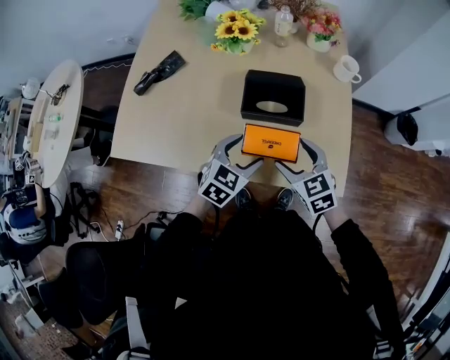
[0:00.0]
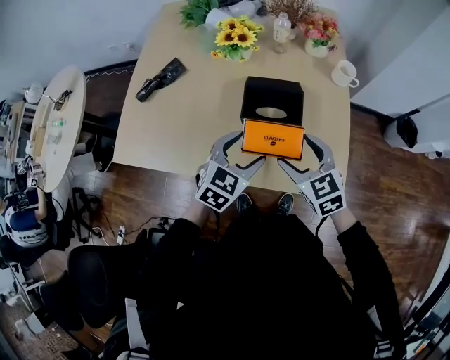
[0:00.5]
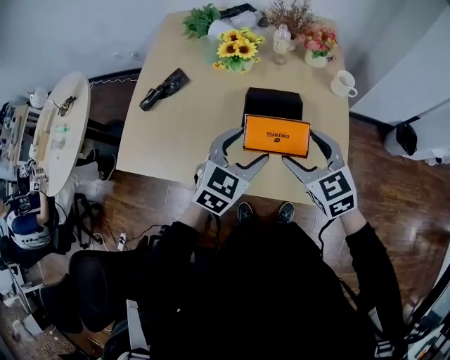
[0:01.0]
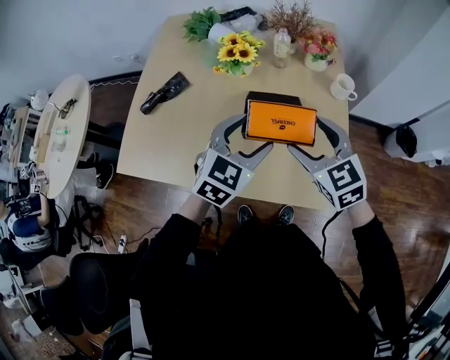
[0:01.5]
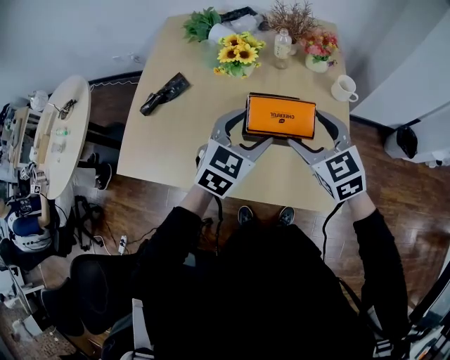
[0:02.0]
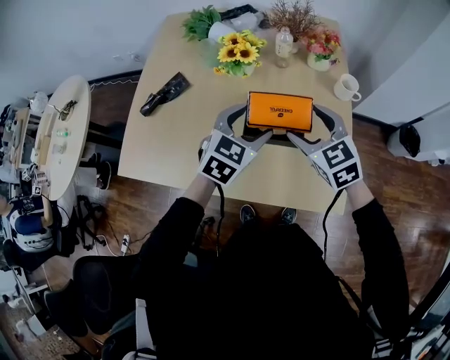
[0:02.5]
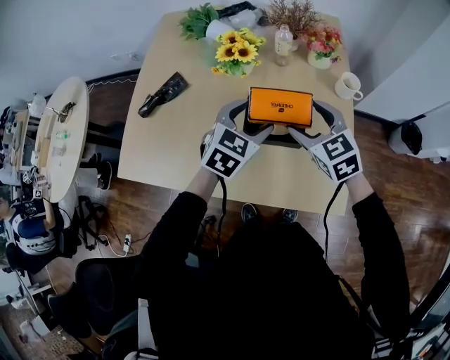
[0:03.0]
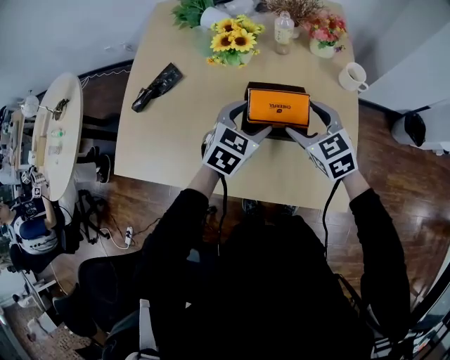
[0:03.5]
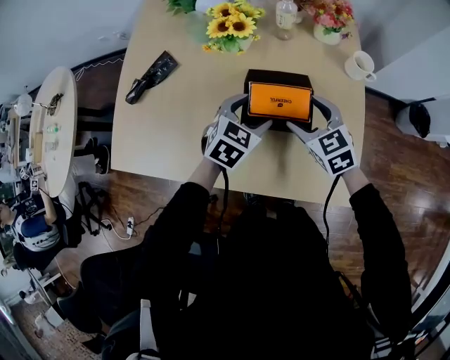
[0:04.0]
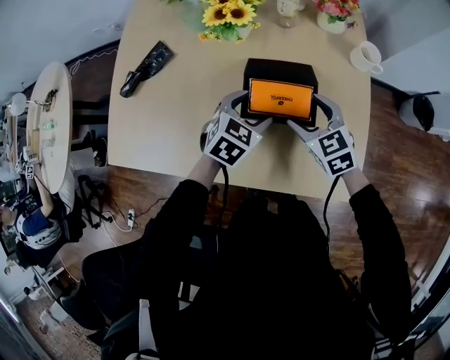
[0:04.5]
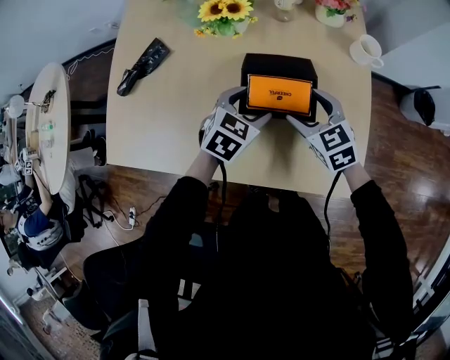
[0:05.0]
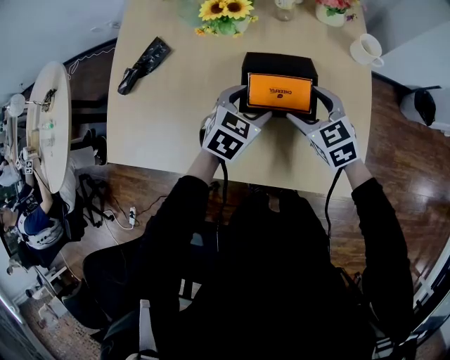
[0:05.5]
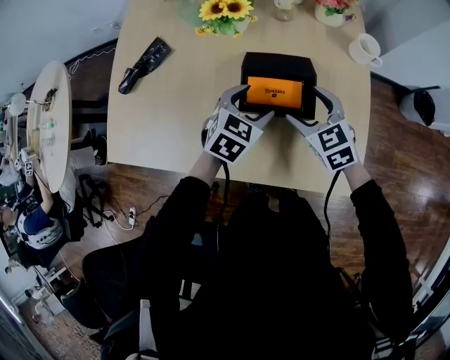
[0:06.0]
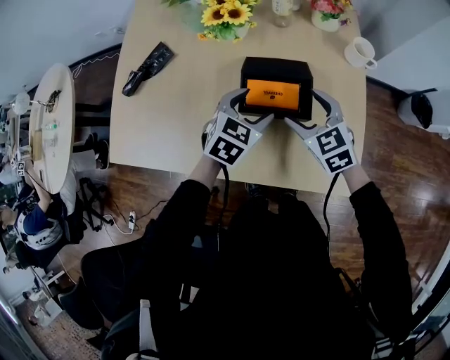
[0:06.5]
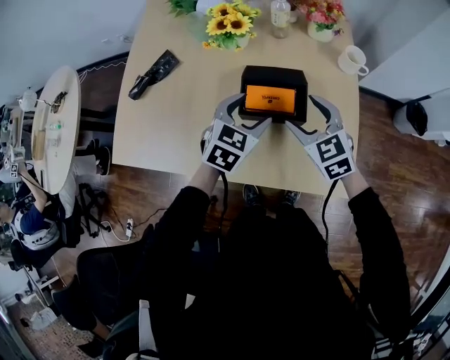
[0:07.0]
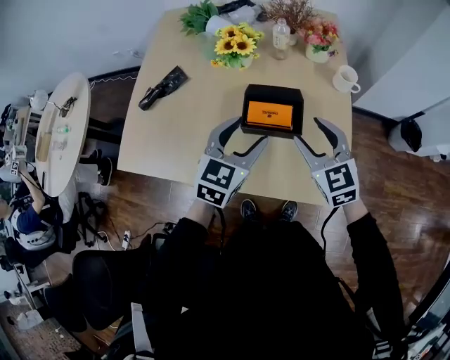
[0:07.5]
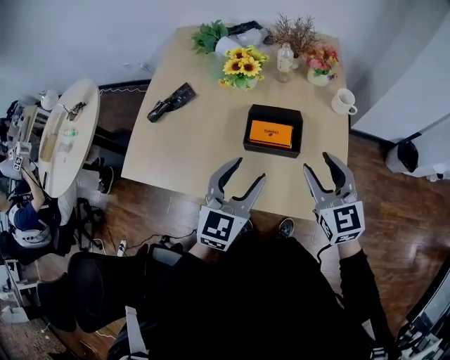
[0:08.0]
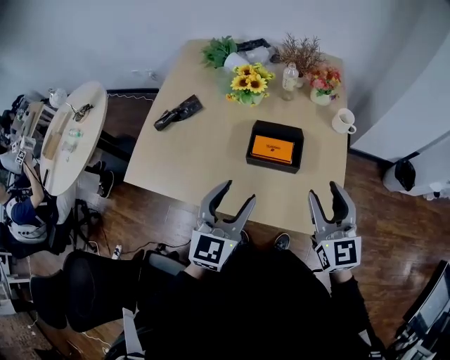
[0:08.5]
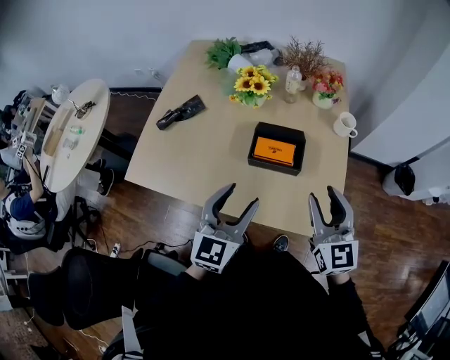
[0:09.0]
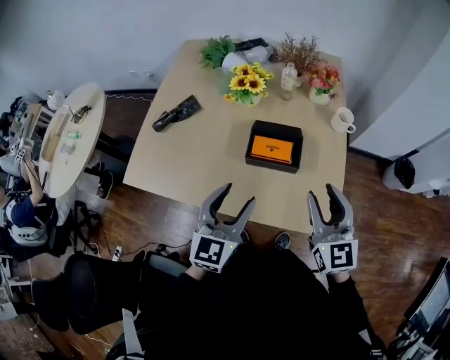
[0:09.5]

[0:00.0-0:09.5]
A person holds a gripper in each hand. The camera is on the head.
0:00.0 to 0:02.0: Both grippers move upward and forward, approximately 15 cm.
0:02.0 to 0:04.0: Both grippers travel together downward and forward, about 15 cm.
0:04.0 to 0:05.5: The grippers move only a little.
0:05.5 to 0:07.5: Both grippers travel together upward and backward, some 15 cm. The left gripper swivels roughly 20 degrees.
0:07.5 to 0:09.5: The left gripper moves backward, about 10 cm, while the right gripper goes about 10 cm upward and backward, and changes its angle by about 20 degrees.

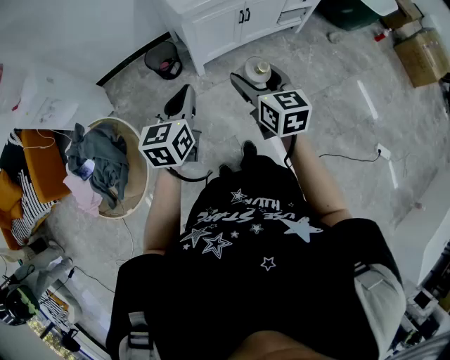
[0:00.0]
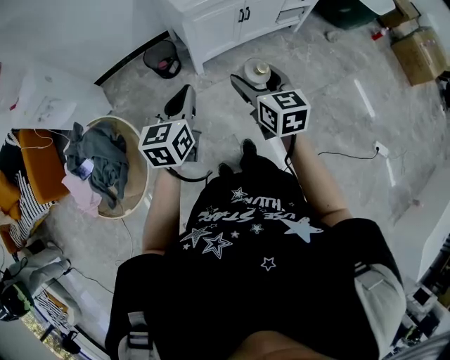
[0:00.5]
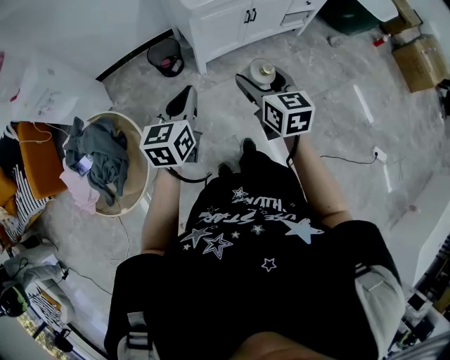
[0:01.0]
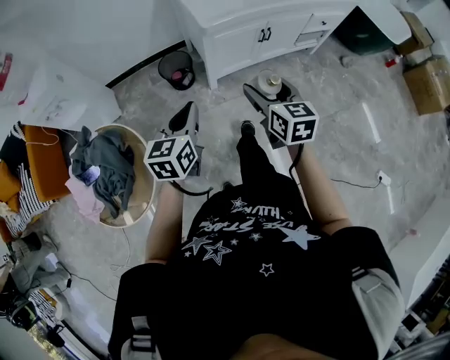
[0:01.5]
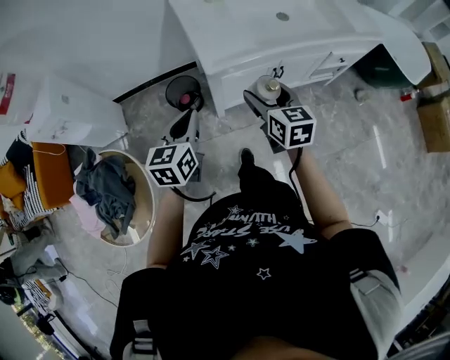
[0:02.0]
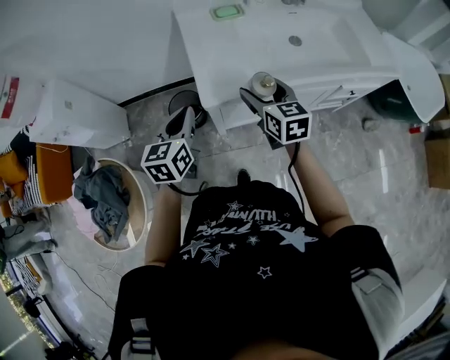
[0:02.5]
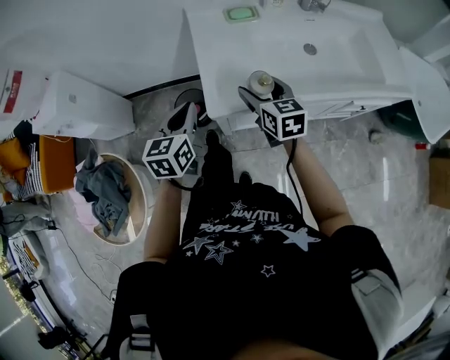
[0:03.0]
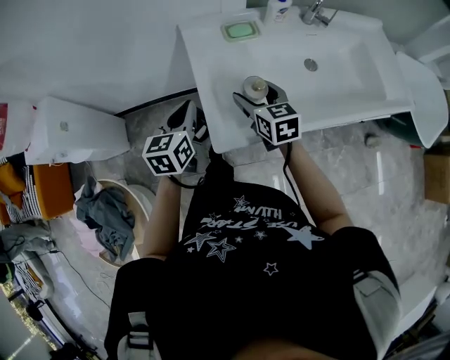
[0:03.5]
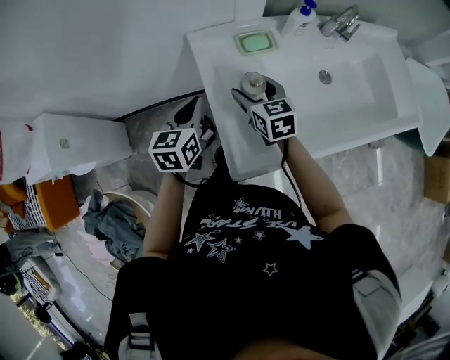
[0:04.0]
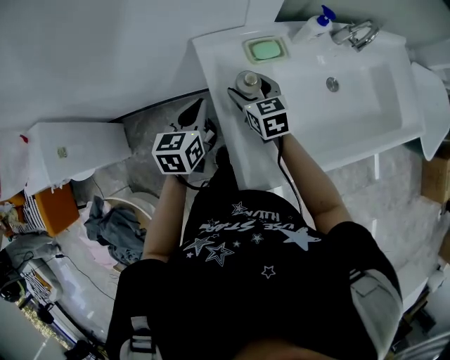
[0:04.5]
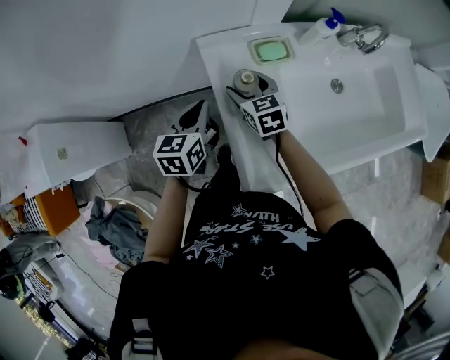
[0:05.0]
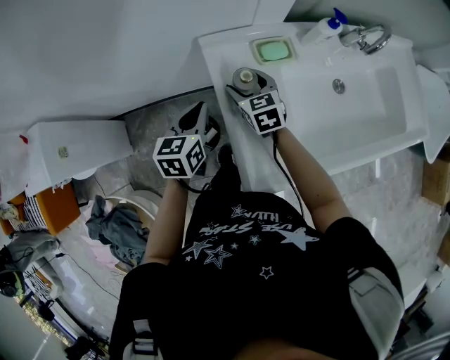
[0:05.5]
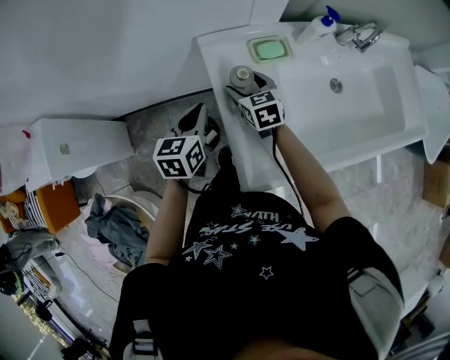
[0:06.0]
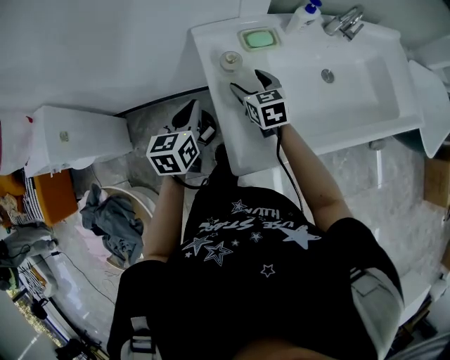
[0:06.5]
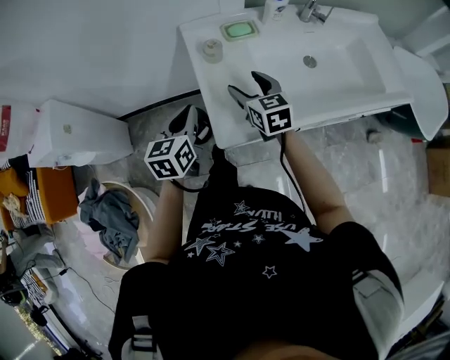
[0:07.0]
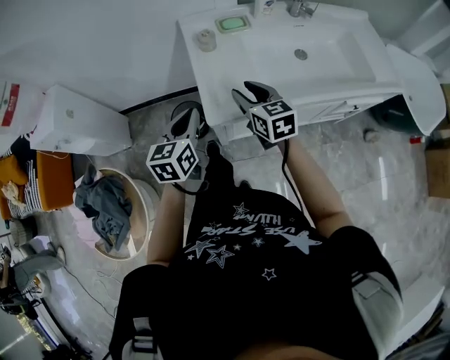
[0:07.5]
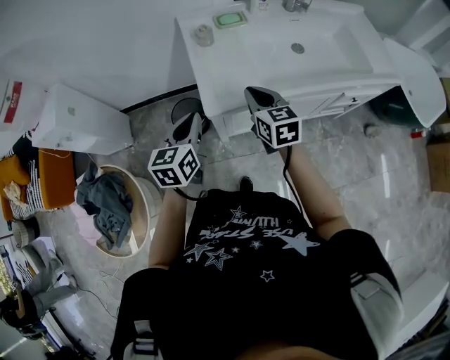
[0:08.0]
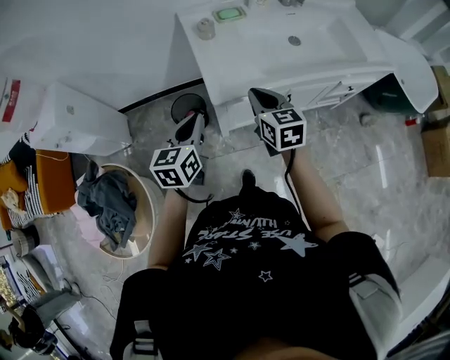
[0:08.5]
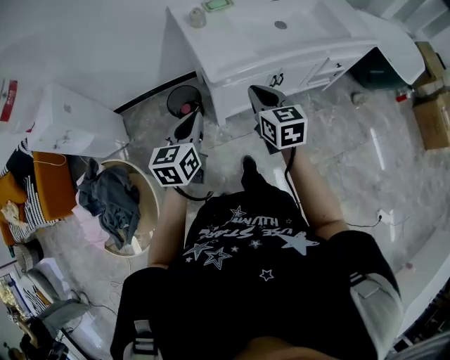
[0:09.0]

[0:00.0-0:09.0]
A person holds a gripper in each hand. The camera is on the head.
0:00.0 to 0:02.0: Both grippers move forward, approximately 25 cm.
0:02.0 to 0:04.5: The pair of grippers is taken forward, roughly 50 cm.
0:04.5 to 0:07.0: The right gripper travels backward and upward by about 20 cm, while the left gripper moves backward, about 20 cm.
0:07.0 to 0:09.0: Both grippers travel together backward, approximately 30 cm. The right gripper closes its fingers.

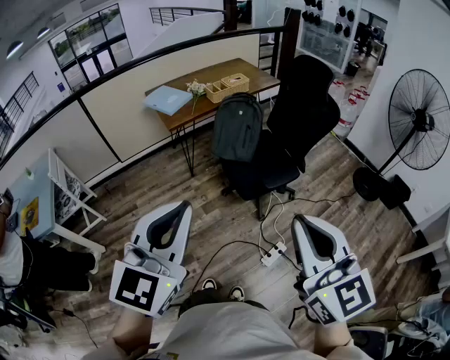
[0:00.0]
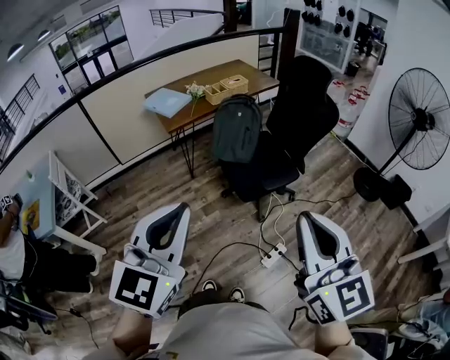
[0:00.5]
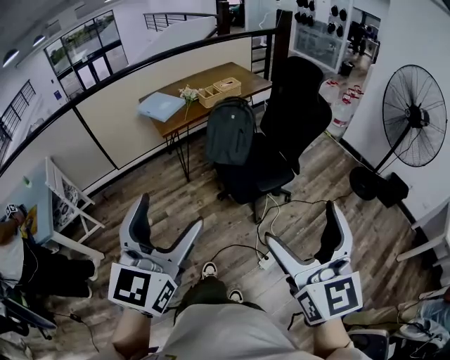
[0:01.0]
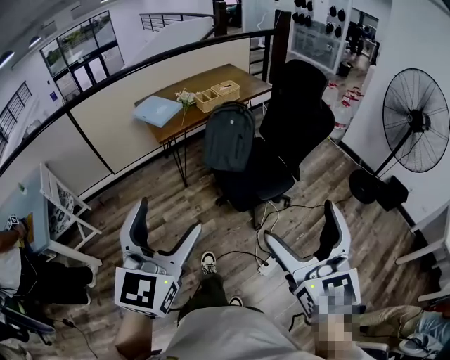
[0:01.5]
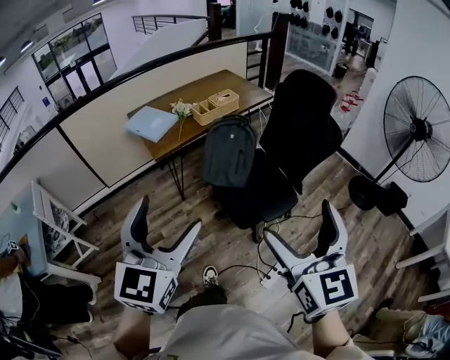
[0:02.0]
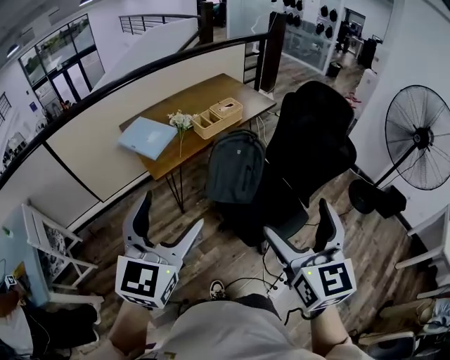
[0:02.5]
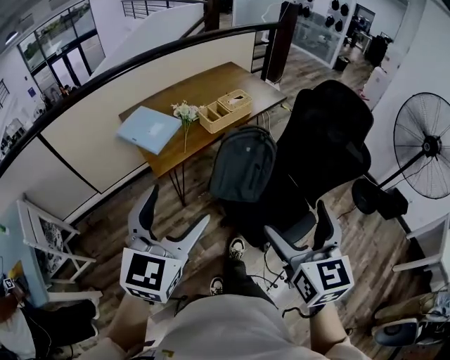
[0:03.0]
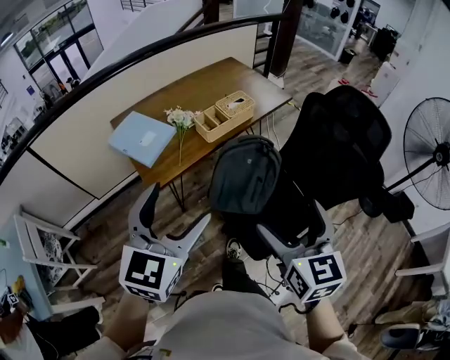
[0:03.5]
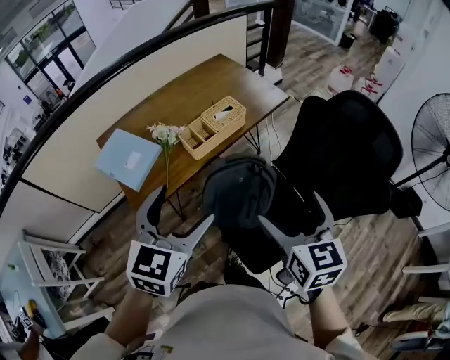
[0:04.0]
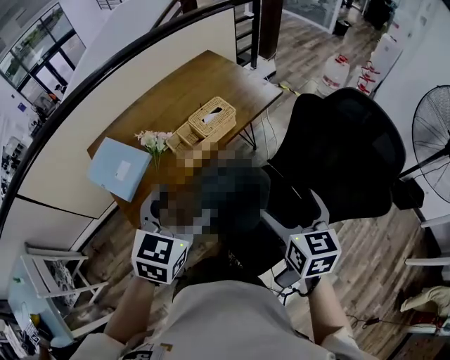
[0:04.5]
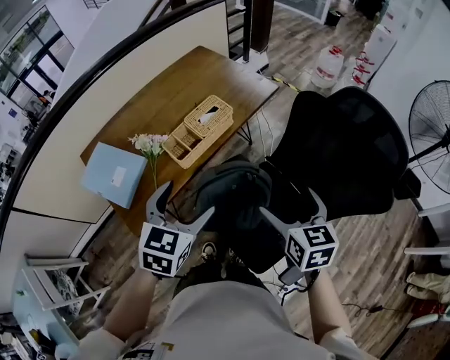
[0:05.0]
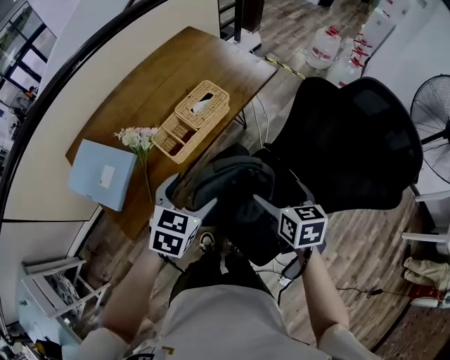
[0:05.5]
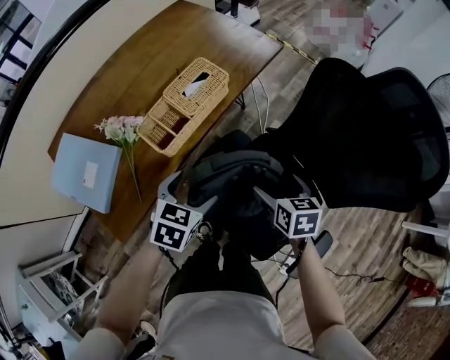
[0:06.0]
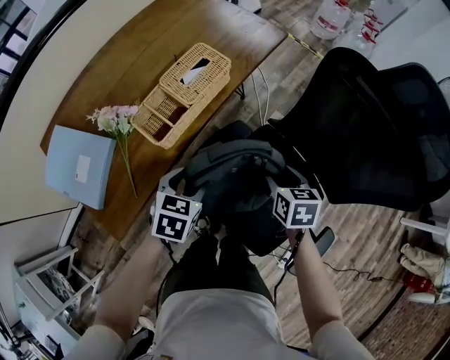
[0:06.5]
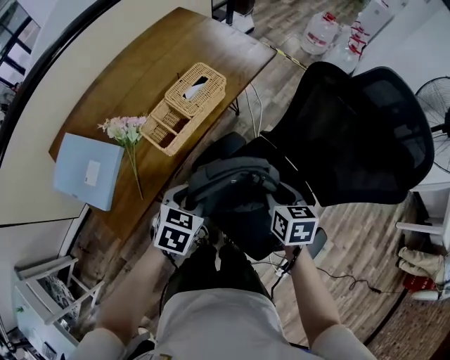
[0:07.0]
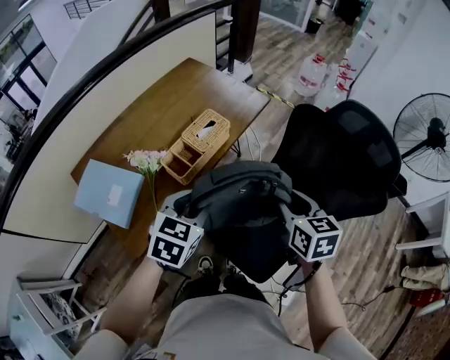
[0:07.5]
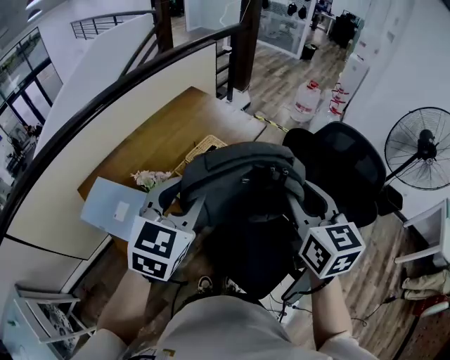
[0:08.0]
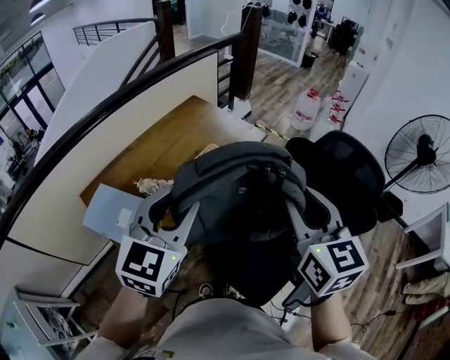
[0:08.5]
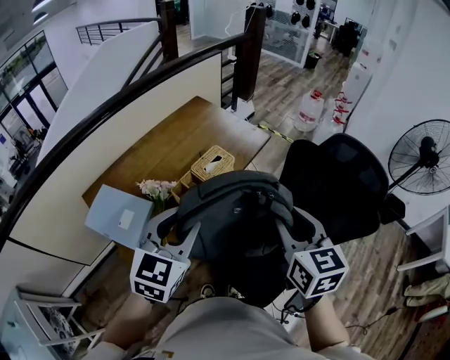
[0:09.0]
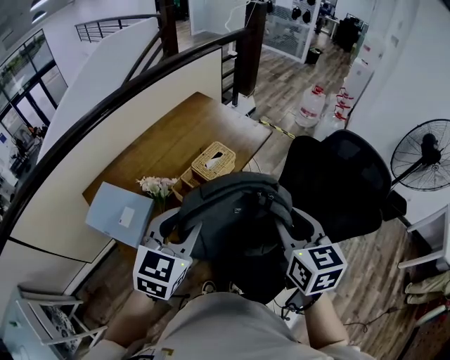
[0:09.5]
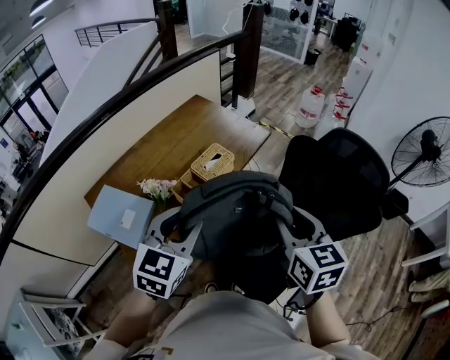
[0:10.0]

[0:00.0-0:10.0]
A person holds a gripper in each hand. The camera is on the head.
0:00.0 to 0:02.0: The two grippers go some 20 cm forward. The right gripper opens its fingers. The left gripper opens up.
0:02.0 to 0:04.0: Both grippers are carried forward, roughly 50 cm. The left gripper turns by some 20 degrees.
0:04.0 to 0:06.0: Both grippers move downward and forward, roughly 35 cm. The left gripper turns by about 30 degrees, while the right gripper swivels approximately 30 degrees.
0:06.0 to 0:08.0: The grippers both shift upward by roughly 40 cm. The right gripper tilts its fingers roughly 30 degrees upward, and closes its fingers. Meanwhile the left gripper rotates roughly 30 degrees, and closes its fingers.
0:08.0 to 0:10.0: The right gripper heads downward, covering roughly 5 cm; the left gripper ends up some 5 cm from where it was.
